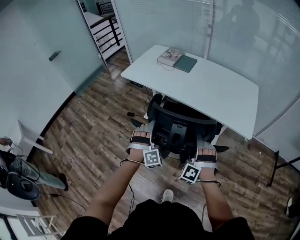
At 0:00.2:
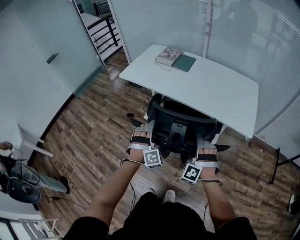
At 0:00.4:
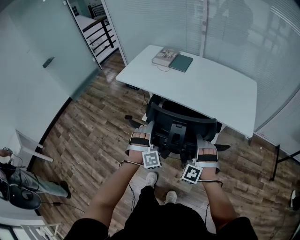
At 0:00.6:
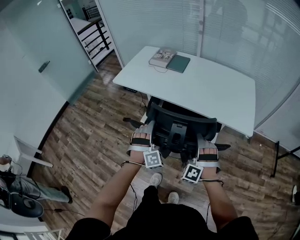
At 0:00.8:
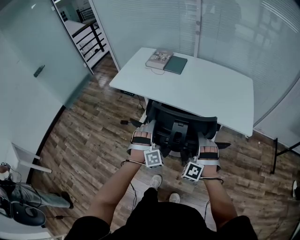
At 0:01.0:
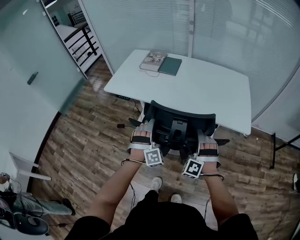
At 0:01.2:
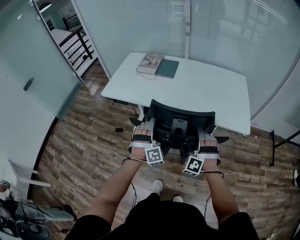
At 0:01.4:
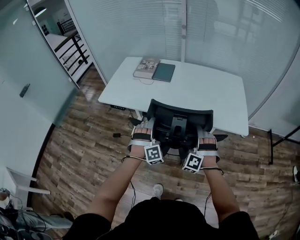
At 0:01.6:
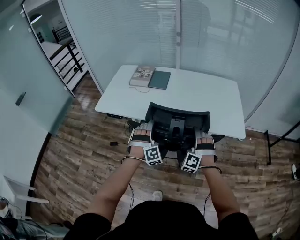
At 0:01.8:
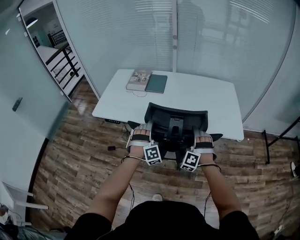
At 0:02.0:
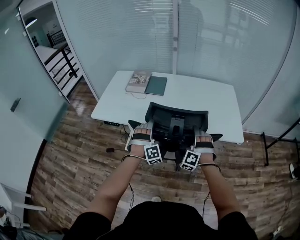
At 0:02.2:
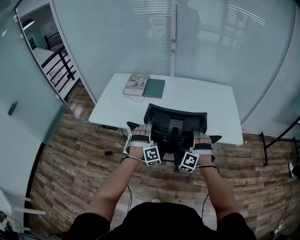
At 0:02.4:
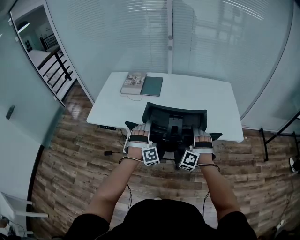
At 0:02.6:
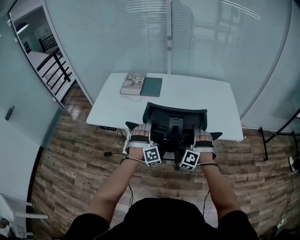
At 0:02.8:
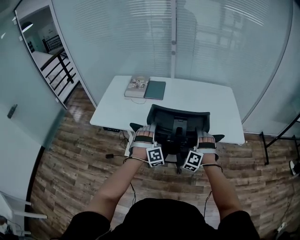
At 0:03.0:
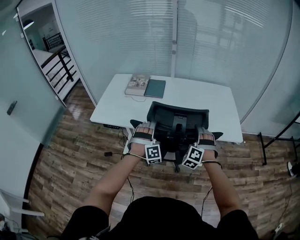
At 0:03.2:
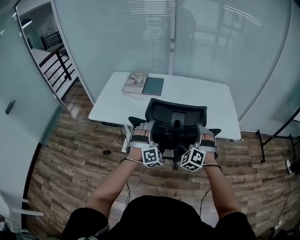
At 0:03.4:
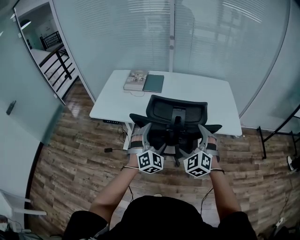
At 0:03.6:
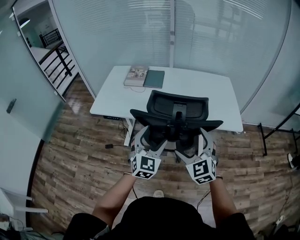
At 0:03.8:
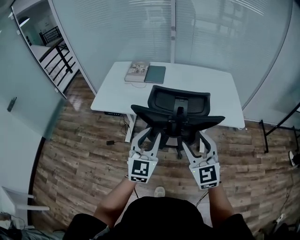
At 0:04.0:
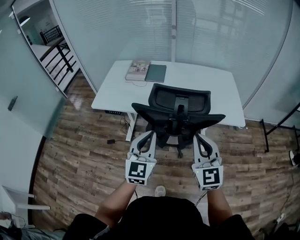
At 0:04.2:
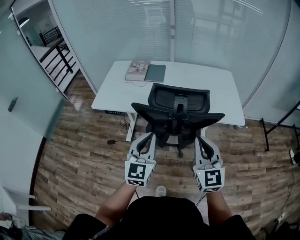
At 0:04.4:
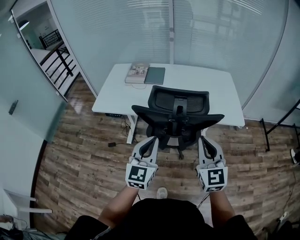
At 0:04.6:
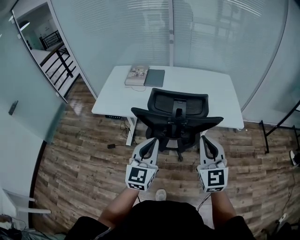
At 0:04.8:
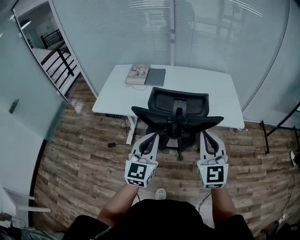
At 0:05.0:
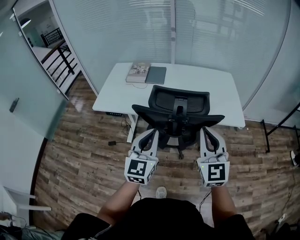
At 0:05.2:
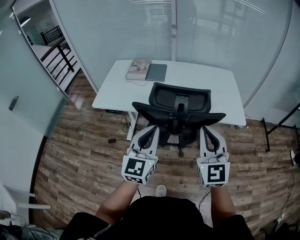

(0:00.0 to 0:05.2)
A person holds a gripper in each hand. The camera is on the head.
0:00.0 - 0:01.8: Both grippers move forward, approximately 20 cm.
0:01.8 - 0:03.4: The grippers both shift upward and backward by approximately 10 cm. The right gripper rotates approximately 40 degrees; the left gripper rotates some 30 degrees.
0:03.4 - 0:05.2: Both grippers travel together upward and backward, some 15 cm. The left gripper rolls counterclockwise, seen from behind, by about 50 degrees, and closes up. Meanwhile the right gripper turns by about 40 degrees, and closes up.

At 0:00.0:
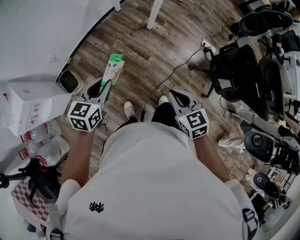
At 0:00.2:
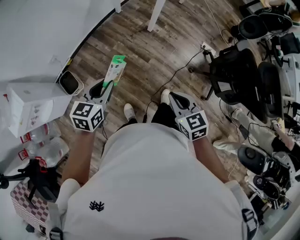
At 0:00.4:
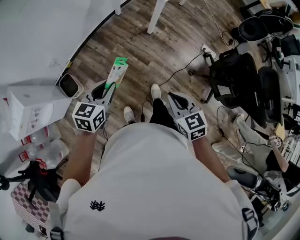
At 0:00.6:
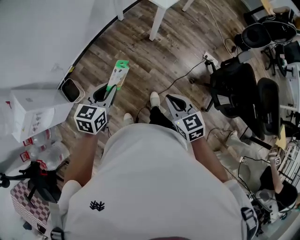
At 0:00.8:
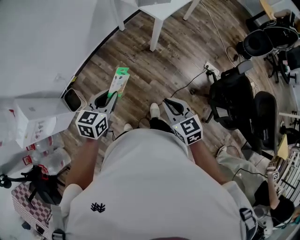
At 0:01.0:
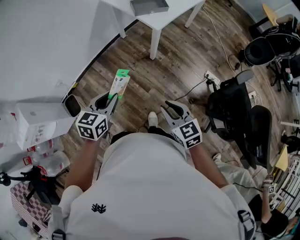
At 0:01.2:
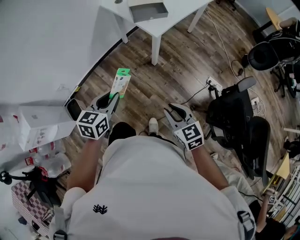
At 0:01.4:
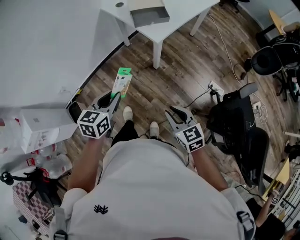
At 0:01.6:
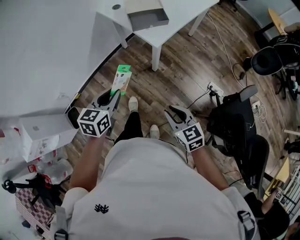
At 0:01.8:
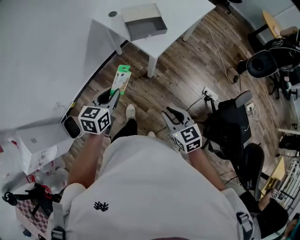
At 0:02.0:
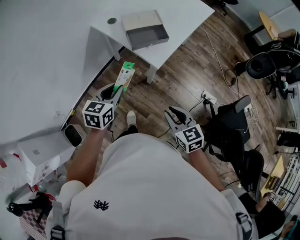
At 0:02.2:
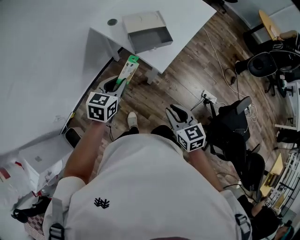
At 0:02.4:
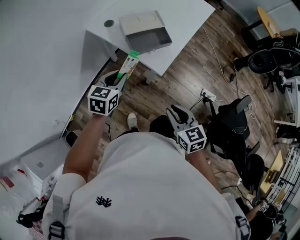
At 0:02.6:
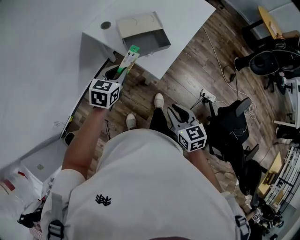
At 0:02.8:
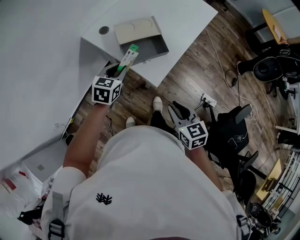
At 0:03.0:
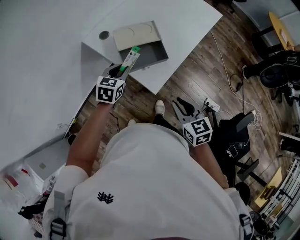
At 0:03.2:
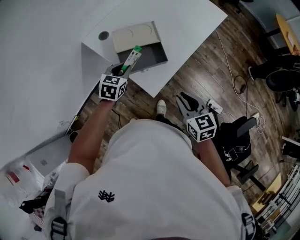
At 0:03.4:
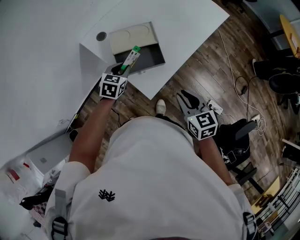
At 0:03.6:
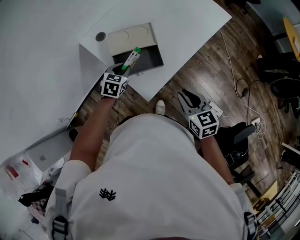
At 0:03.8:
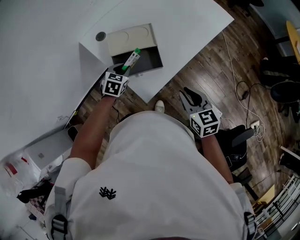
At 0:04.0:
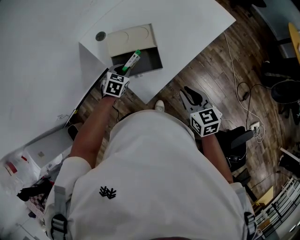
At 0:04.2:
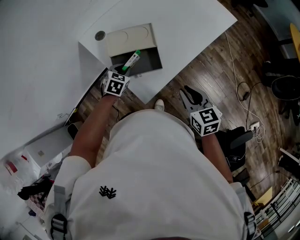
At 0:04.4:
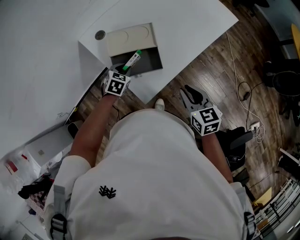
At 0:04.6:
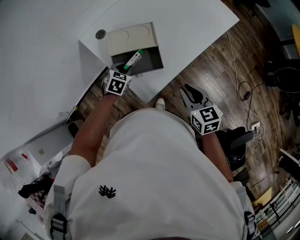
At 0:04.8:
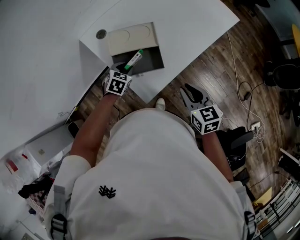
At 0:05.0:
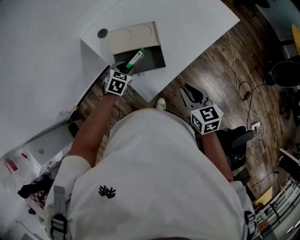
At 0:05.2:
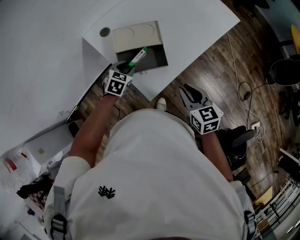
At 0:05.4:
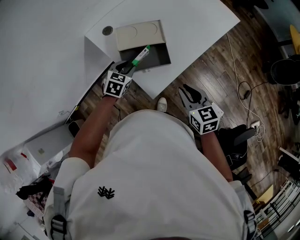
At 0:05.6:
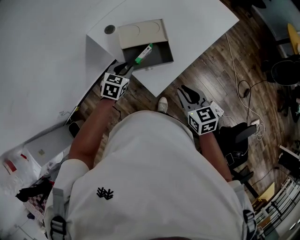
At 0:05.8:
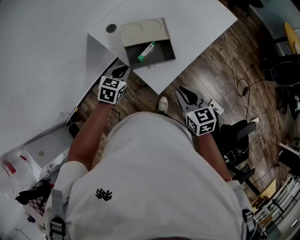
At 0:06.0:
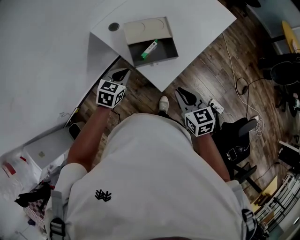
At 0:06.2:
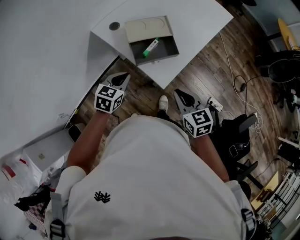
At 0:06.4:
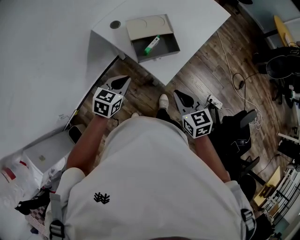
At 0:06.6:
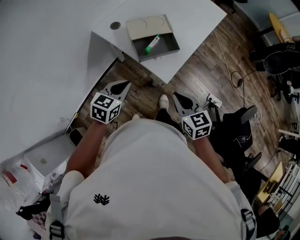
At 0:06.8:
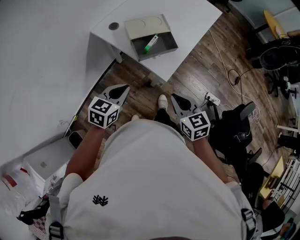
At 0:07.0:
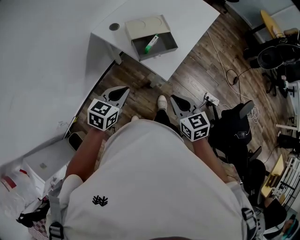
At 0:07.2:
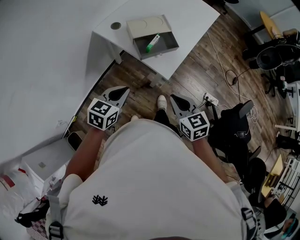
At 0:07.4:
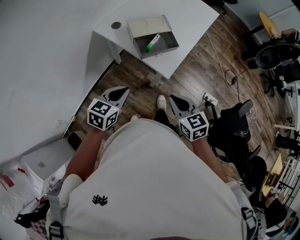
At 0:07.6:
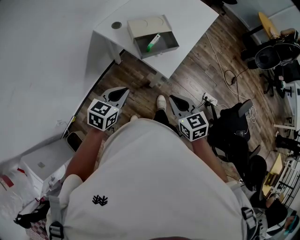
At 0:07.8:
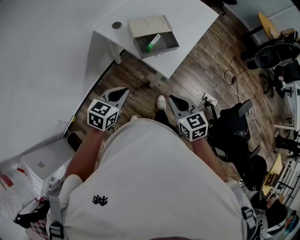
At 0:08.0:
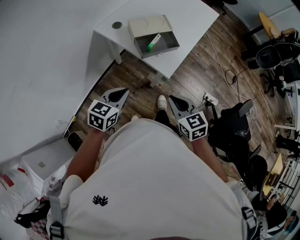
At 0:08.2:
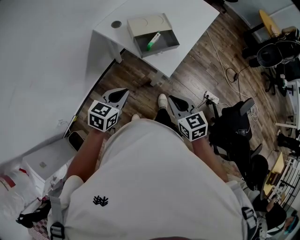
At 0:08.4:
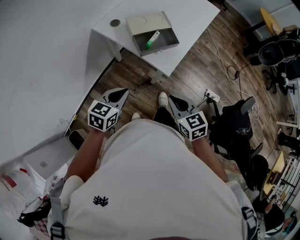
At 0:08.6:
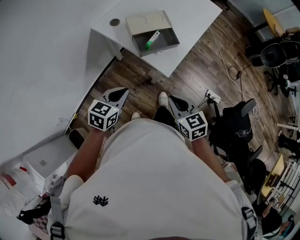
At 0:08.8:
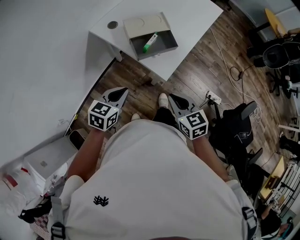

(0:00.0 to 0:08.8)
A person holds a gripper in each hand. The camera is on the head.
0:00.0 - 0:01.4: The two grippers go about 25 cm forward and to the right.
0:01.4 - 0:03.0: Both grippers move forward, about 35 cm.
0:03.0 - 0:04.4: The left gripper is displaced downward and forward by about 10 cm, while the right gripper travels forward and to the right by roughly 15 cm.
0:04.4 - 0:05.8: The right gripper travels to the left by roughly 10 cm; the left gripper moves upward, backward and to the left, approximately 10 cm.
0:05.8 - 0:07.4: The right gripper is displaced backward and to the left by roughly 15 cm; the left gripper goes approximately 20 cm backward, and turns by roughly 20 degrees.
0:07.4 - 0:08.8: The grippers move only a little.

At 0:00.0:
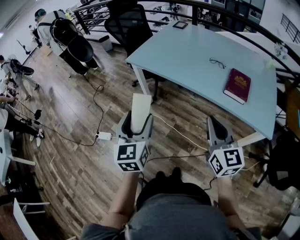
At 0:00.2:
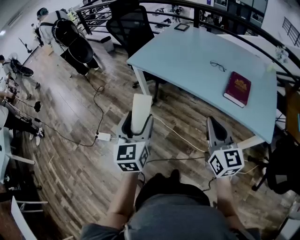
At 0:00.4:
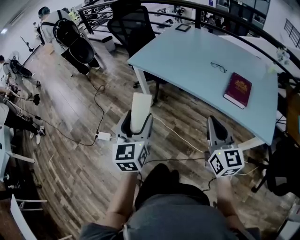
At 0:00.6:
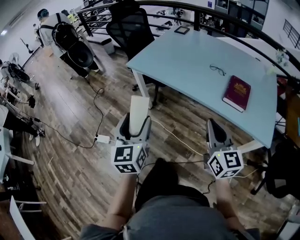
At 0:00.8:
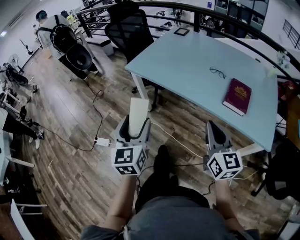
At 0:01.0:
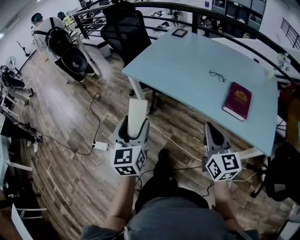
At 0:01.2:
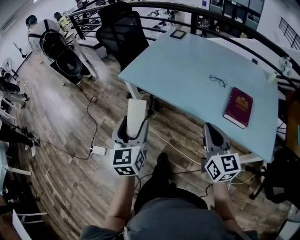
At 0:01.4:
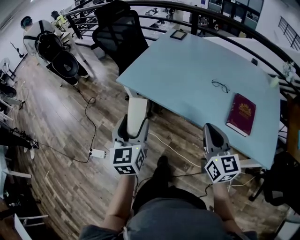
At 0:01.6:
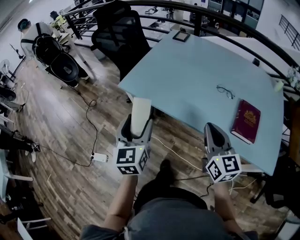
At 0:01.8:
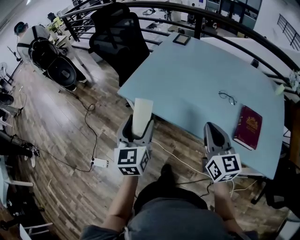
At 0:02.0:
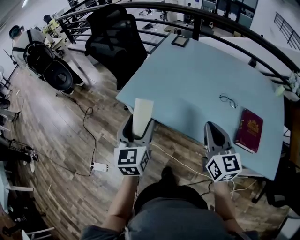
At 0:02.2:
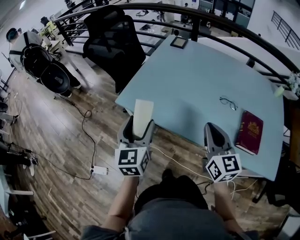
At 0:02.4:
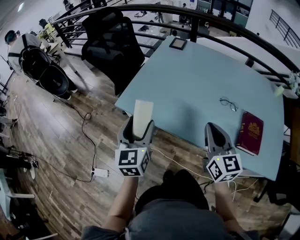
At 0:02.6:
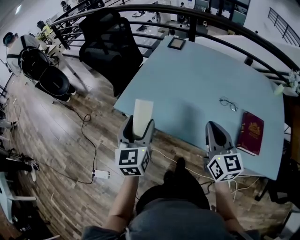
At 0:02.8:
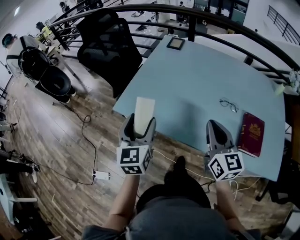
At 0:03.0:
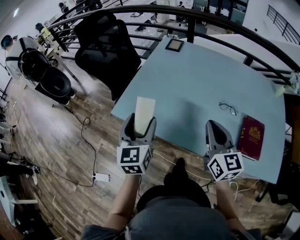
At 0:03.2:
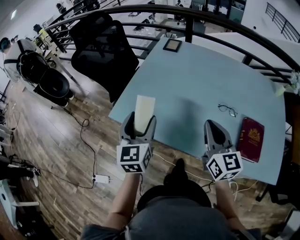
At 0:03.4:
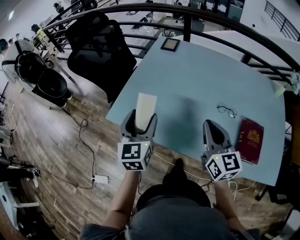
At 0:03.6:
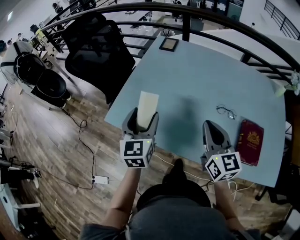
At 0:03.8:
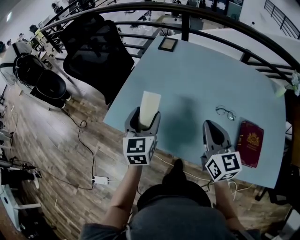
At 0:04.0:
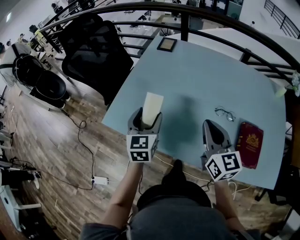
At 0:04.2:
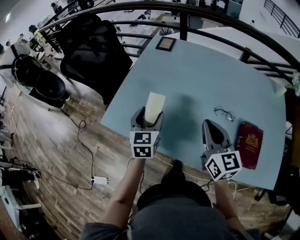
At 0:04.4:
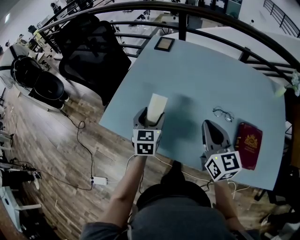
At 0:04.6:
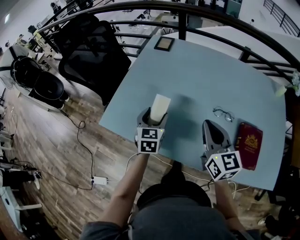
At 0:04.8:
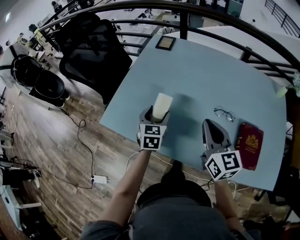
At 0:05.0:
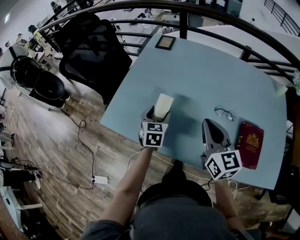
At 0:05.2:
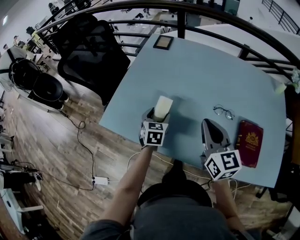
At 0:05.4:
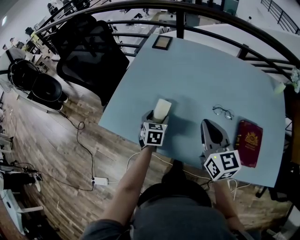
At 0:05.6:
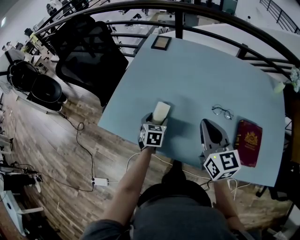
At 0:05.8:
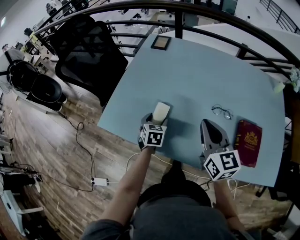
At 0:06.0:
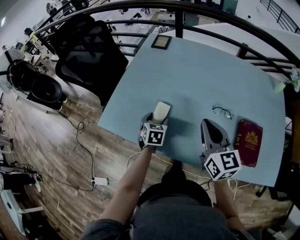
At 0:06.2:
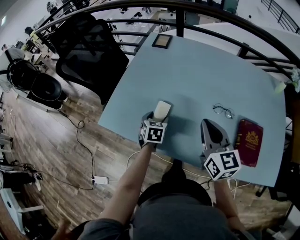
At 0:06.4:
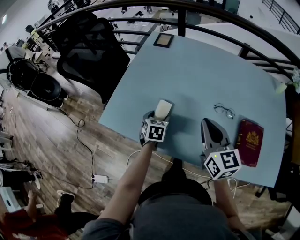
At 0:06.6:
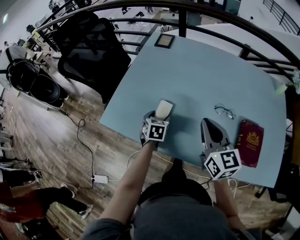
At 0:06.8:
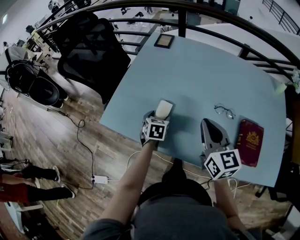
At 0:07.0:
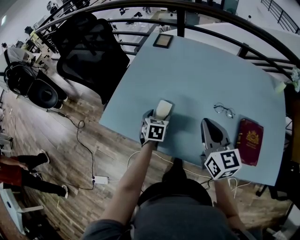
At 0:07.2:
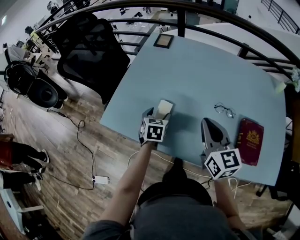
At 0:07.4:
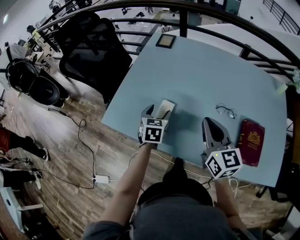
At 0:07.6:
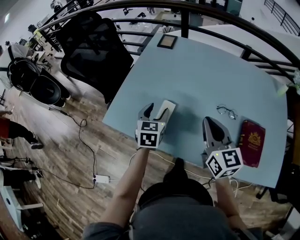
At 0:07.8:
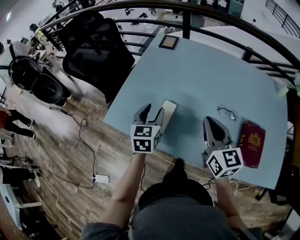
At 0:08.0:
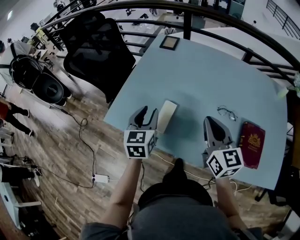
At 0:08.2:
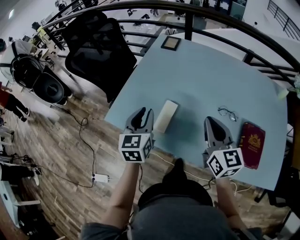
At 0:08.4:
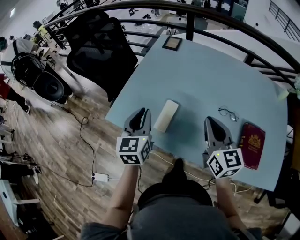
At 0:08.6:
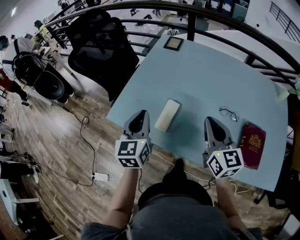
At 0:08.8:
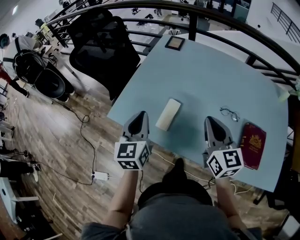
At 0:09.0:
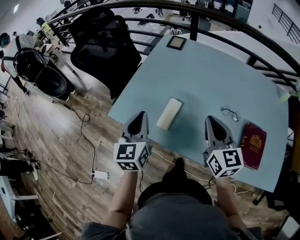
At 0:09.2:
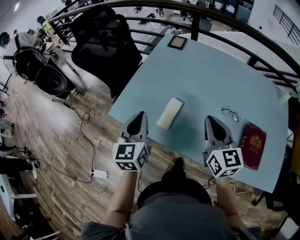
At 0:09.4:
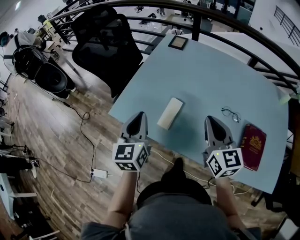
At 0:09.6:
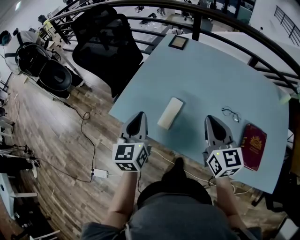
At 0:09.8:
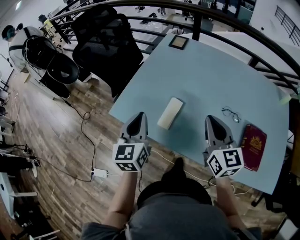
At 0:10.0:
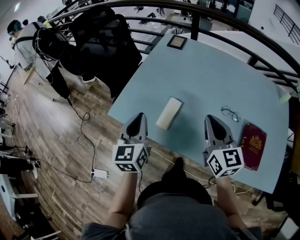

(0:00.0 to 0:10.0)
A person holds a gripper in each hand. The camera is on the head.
0:00.0 - 0:01.4: Both grippers move forward, roughly 20 cm.
0:01.4 - 0:02.8: The two grippers go approximately 20 cm forward.
0:02.8 - 0:04.2: The right gripper moves forward, some 10 cm. Meanwhile the left gripper heads forward, to the right and downward, covering about 20 cm.
0:04.2 - 0:05.8: The left gripper is displaced downward by about 15 cm, and turns by some 20 degrees.
0:05.8 - 0:07.2: The grippers stay close to where they were, moving slightly.
0:07.2 - 0:08.6: The left gripper shifts about 20 cm upward, to the left and backward, turns by roughly 30 degrees, and closes its fingers.
0:08.6 - 0:10.0: There are only small adjustments of the grippers.
